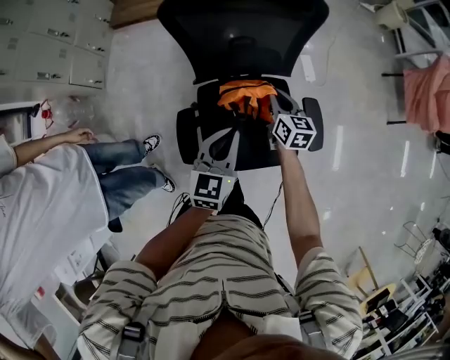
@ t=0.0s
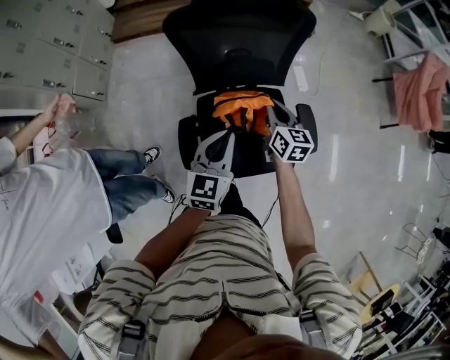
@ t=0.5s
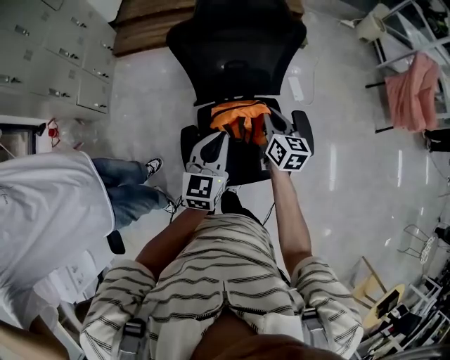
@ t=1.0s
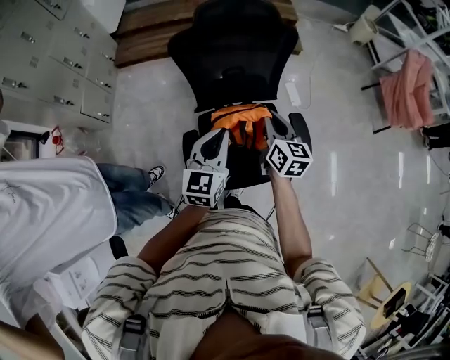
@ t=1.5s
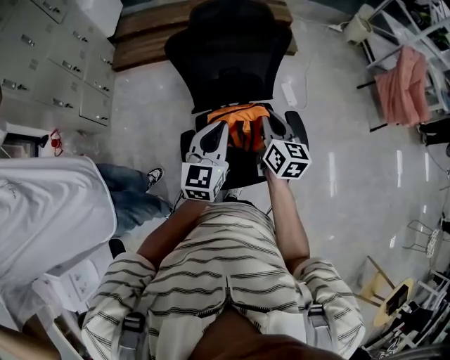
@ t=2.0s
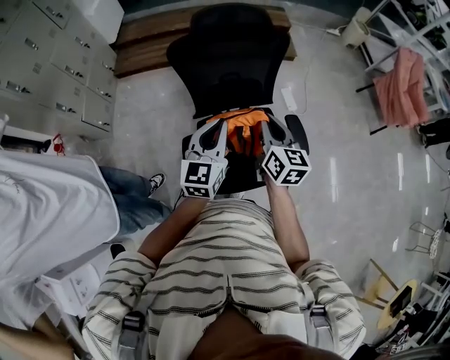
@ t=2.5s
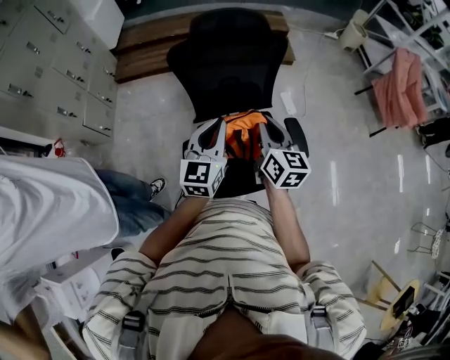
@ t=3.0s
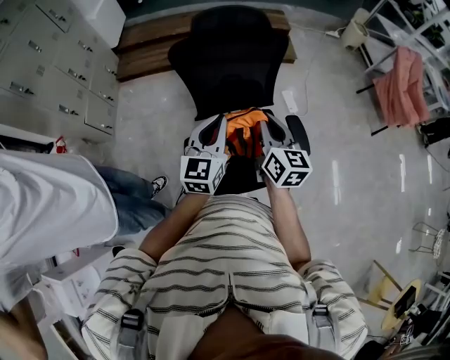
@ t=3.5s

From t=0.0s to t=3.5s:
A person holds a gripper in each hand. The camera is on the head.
From t=0.0s to t=2.0s: The right gripper travels upward and backward by approximately 20 cm; the left gripper shifts approximately 10 cm upward.
From t=2.0s to t=3.5s: The right gripper changes place by roughly 5 cm.

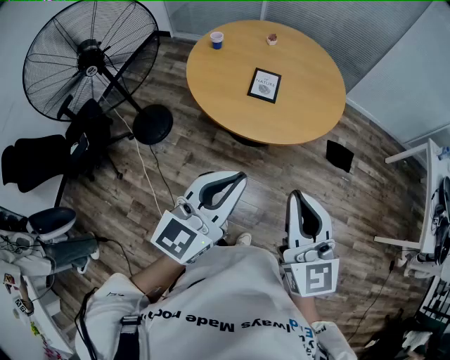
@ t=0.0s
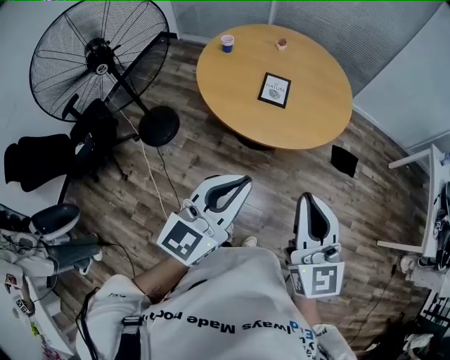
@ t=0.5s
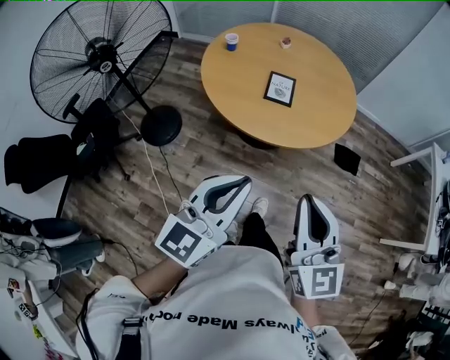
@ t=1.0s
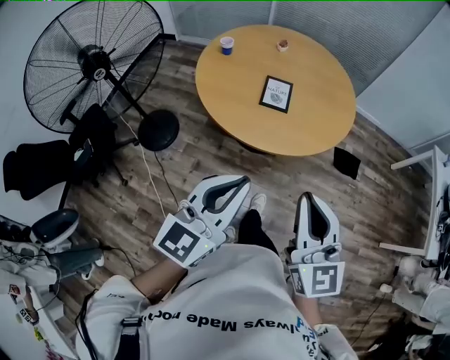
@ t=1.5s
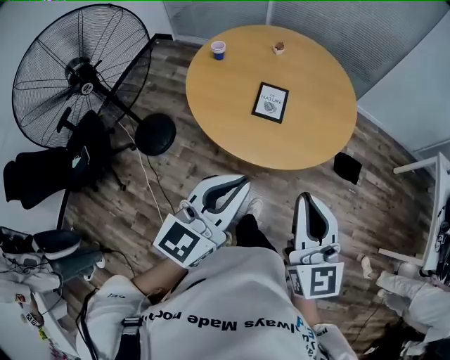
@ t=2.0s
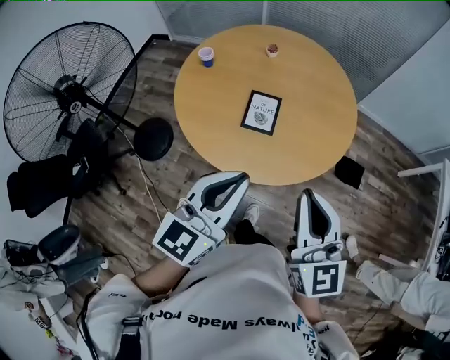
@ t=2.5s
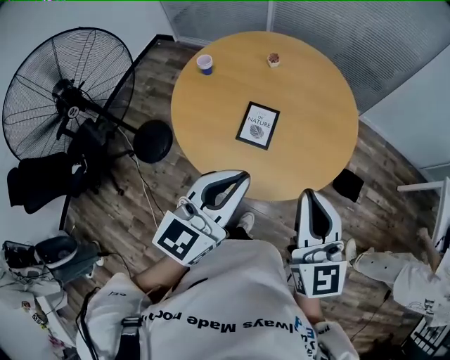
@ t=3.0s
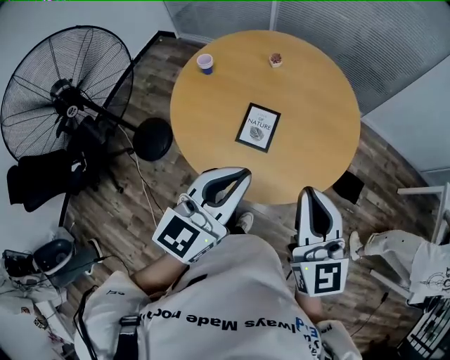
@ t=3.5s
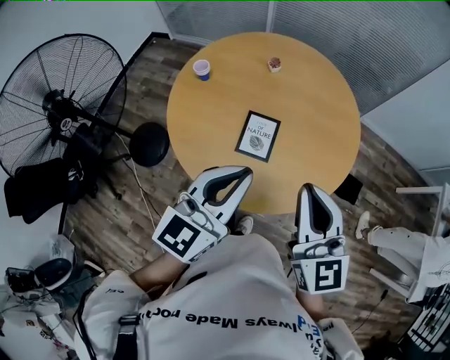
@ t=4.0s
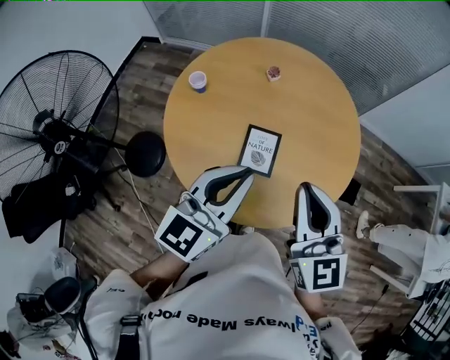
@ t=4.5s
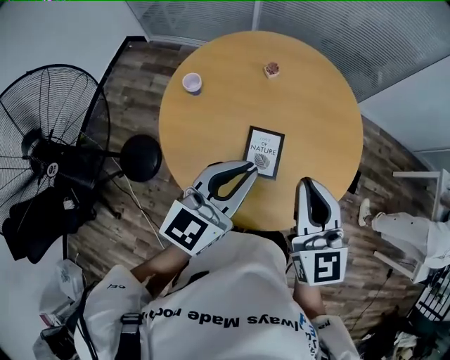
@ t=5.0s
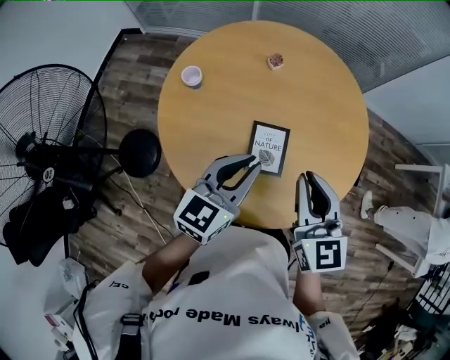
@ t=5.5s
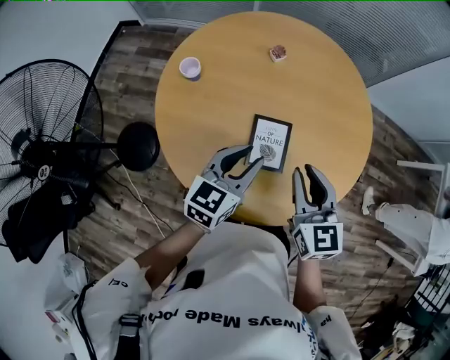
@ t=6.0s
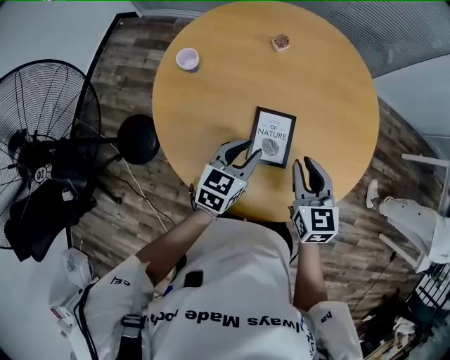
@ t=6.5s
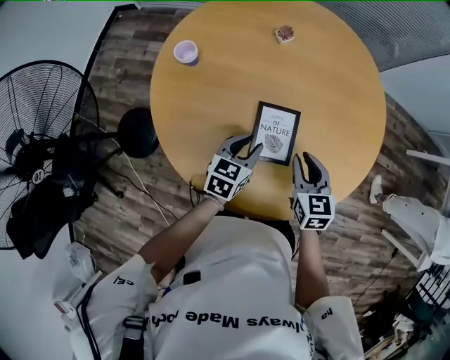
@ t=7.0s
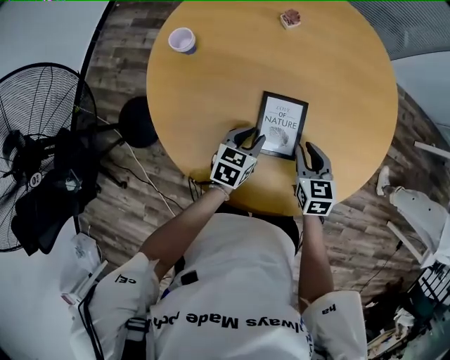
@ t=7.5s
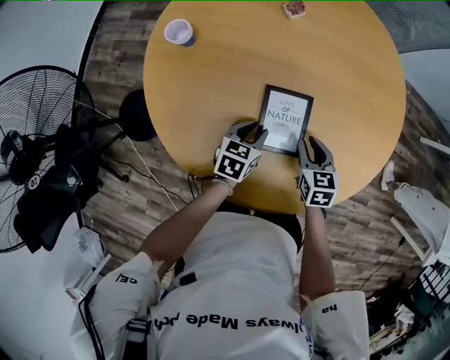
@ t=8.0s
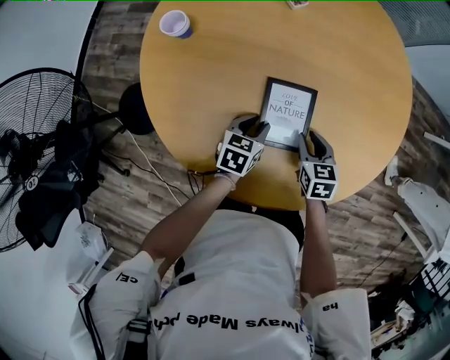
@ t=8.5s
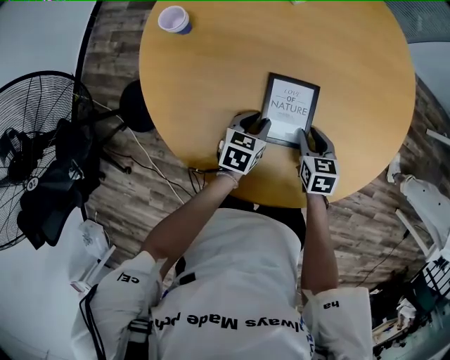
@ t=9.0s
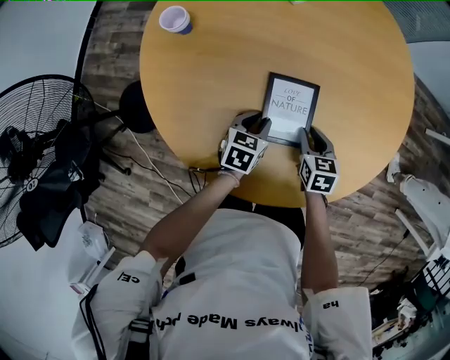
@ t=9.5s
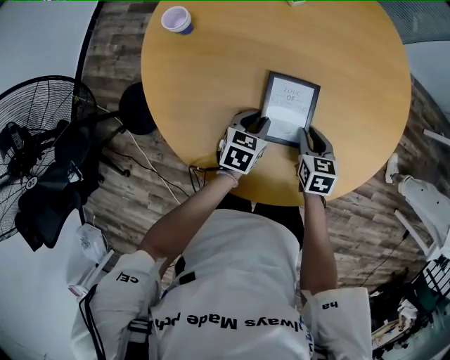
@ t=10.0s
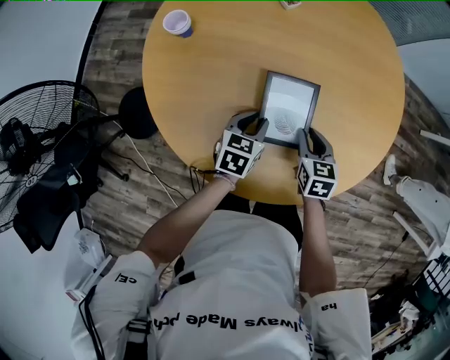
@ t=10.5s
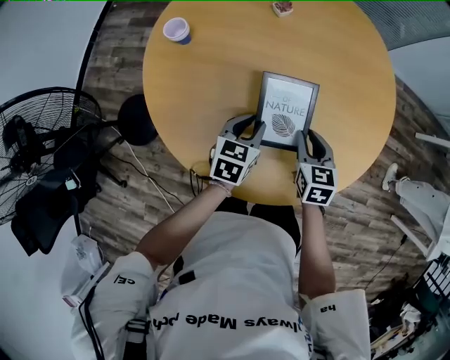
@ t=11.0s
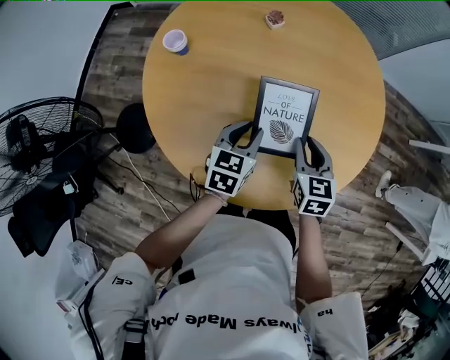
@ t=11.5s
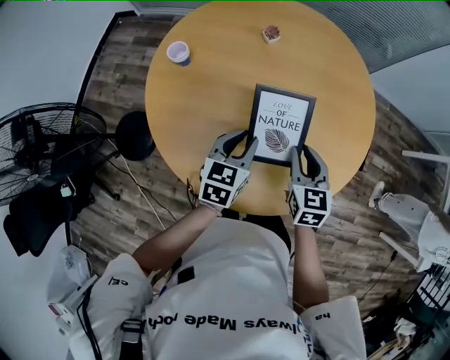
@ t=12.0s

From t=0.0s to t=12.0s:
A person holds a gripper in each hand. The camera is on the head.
From t=0.0s to t=2.0s: Both grippers travel together forward, about 15 cm.
From t=2.0s to t=4.0s: The two grippers go roughly 30 cm forward.
From t=4.0s to t=6.0s: The grippers both shift downward, forward and to the left by roughly 25 cm. The left gripper swivels some 20 degrees, and opens up.
From t=6.0s to t=8.0s: The two grippers go some 25 cm downward. The left gripper turns by approximately 30 degrees. The right gripper changes its angle by some 20 degrees.
From t=8.0s to t=10.0s: The grippers stay close to where they were, moving slightly.
From t=10.0s to t=12.0s: Both grippers move upward, some 20 cm.

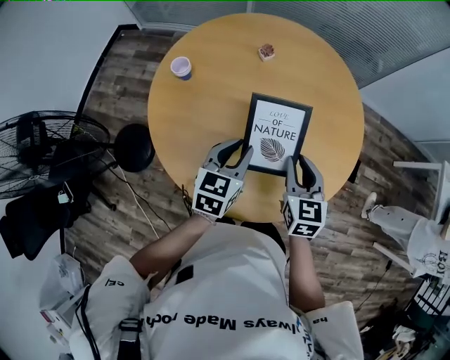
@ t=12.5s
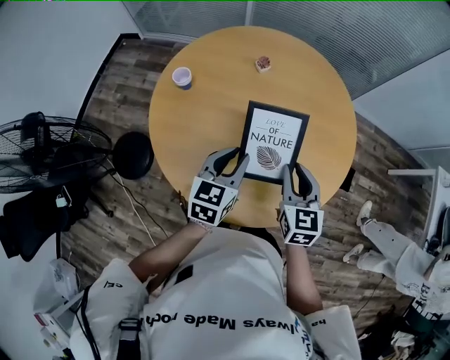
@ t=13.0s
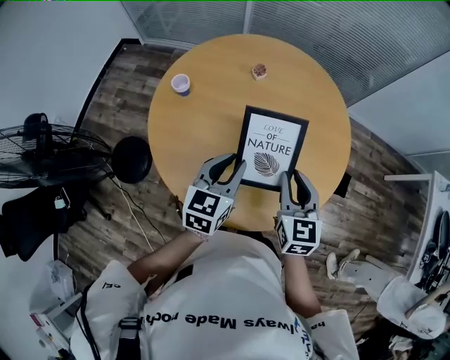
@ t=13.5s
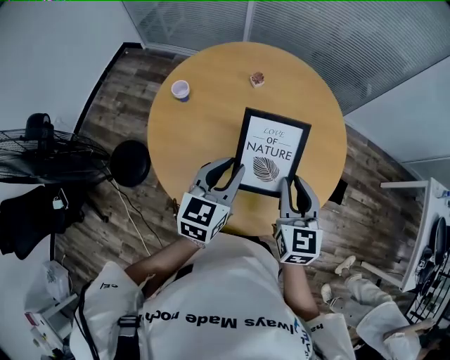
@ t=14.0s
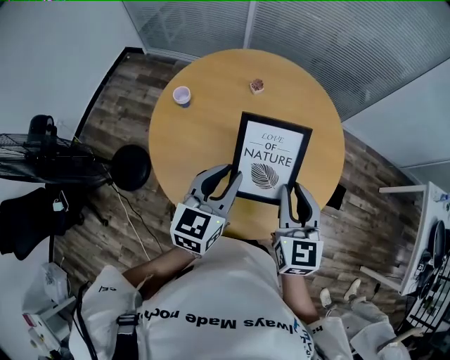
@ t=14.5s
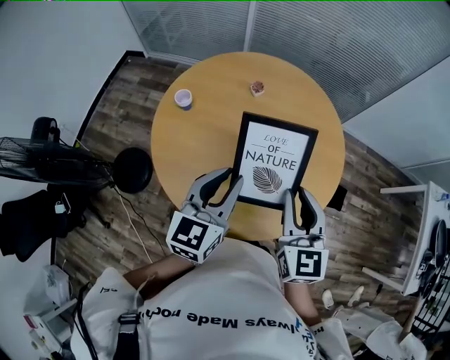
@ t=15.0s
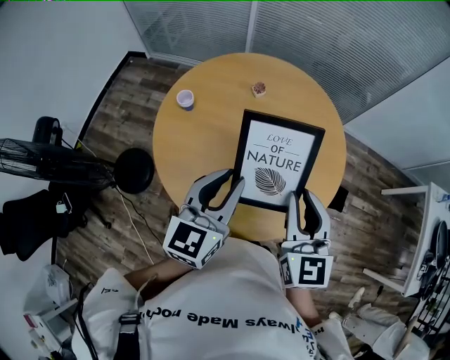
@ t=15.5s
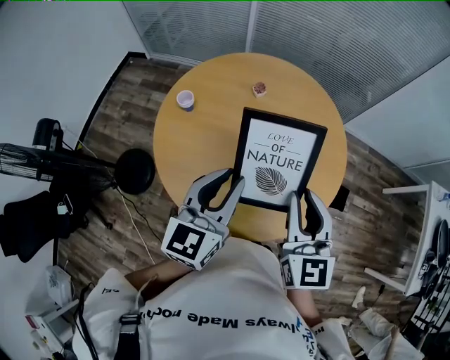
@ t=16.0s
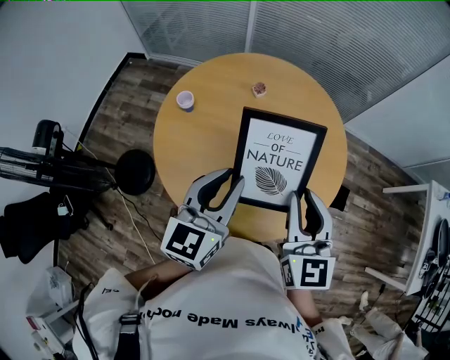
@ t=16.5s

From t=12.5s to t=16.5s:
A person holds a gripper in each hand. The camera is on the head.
From t=12.5s to t=14.5s: Both grippers travel together upward, roughly 15 cm.
From t=14.5s to t=16.5s: The grippers both shift upward by roughly 5 cm.

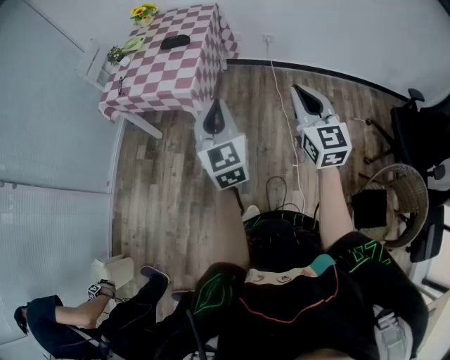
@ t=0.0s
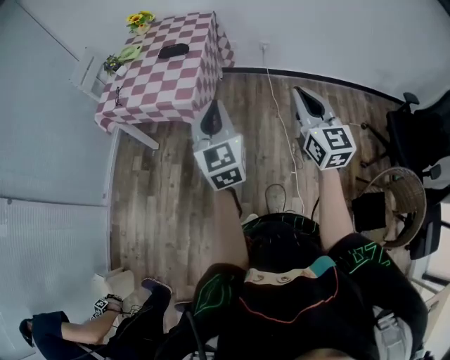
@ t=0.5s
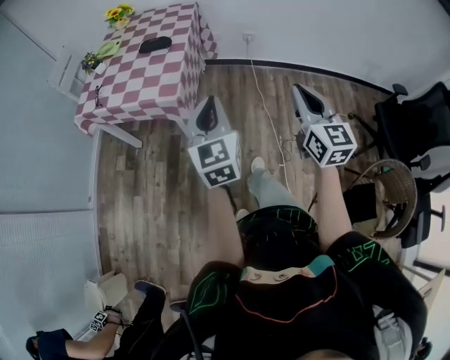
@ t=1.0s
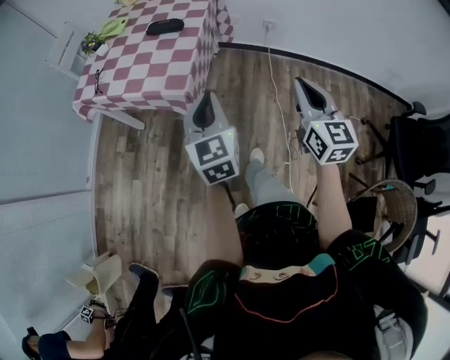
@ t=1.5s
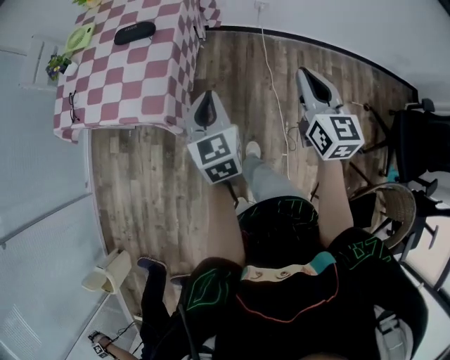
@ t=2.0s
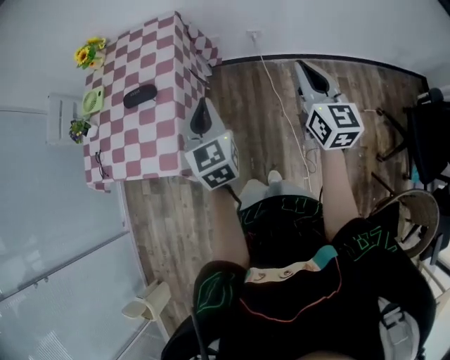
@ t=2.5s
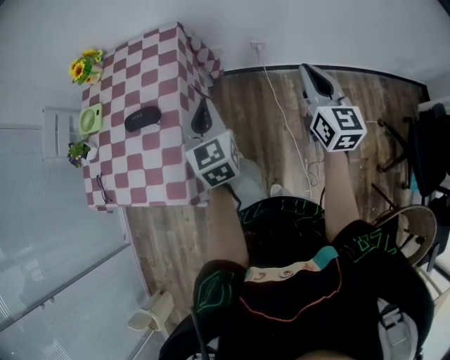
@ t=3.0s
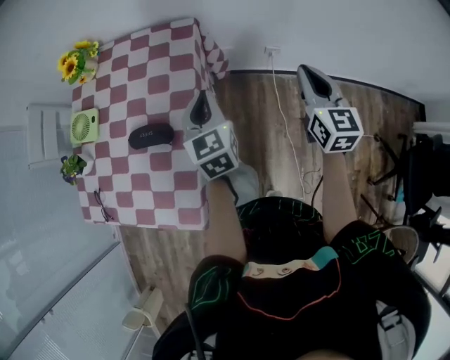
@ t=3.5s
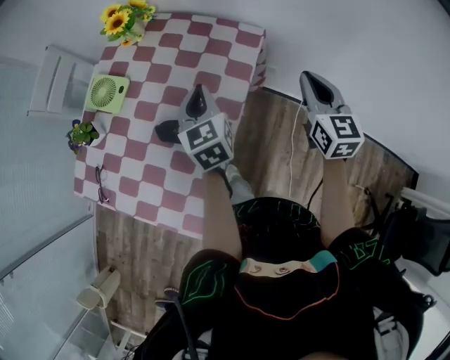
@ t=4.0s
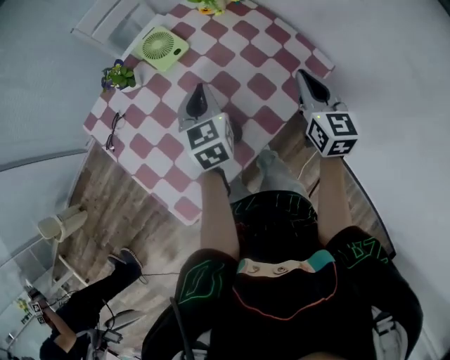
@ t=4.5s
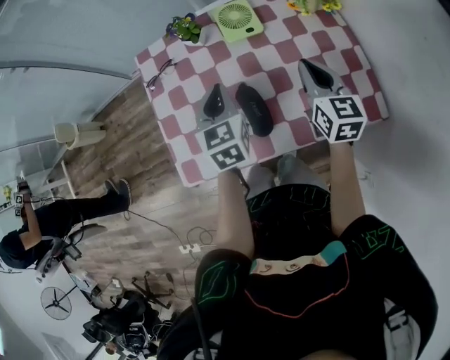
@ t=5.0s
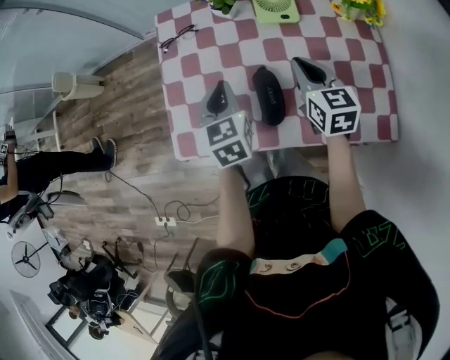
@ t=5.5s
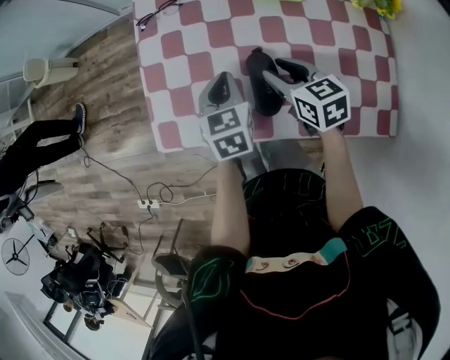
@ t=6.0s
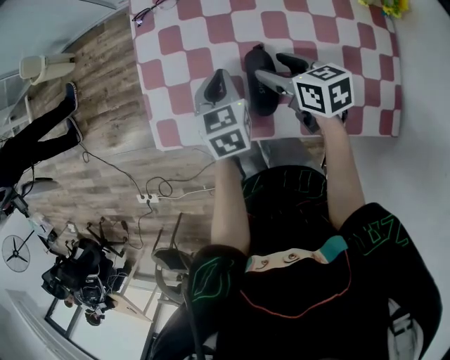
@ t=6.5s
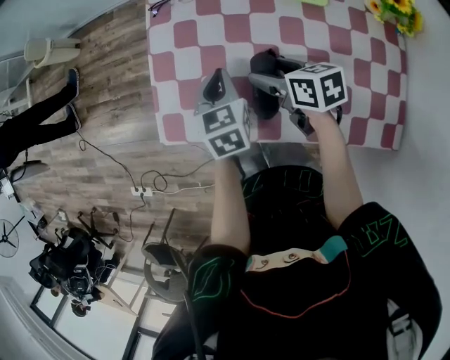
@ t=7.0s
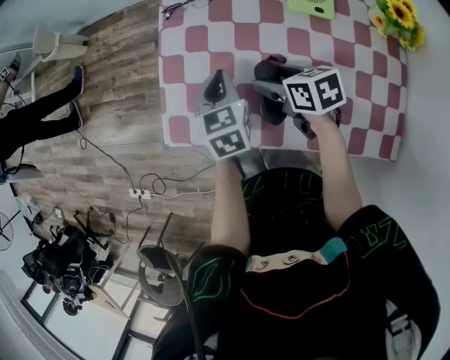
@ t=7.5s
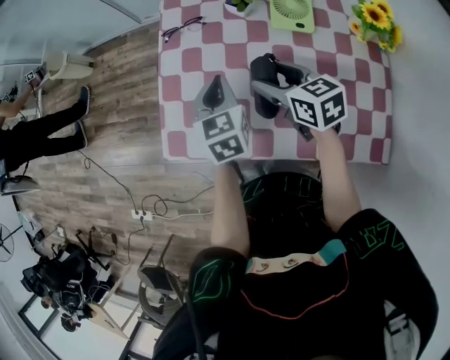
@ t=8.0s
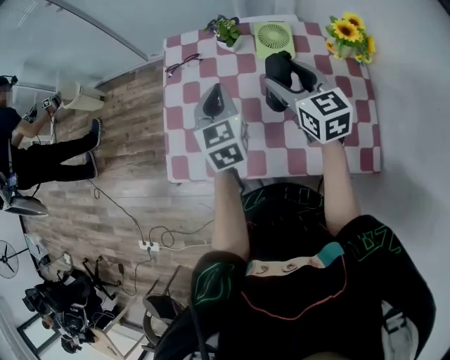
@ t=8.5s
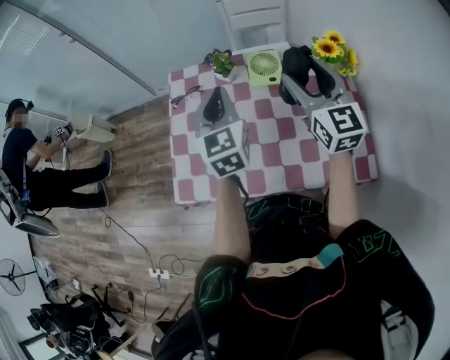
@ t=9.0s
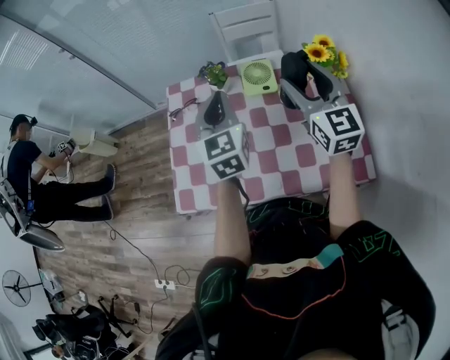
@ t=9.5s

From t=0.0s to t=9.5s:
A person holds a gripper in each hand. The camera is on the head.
From t=0.0s to t=2.0s: The right gripper heads forward, covering roughly 25 cm. The left gripper heads forward and downward, covering approximately 30 cm.
From t=2.0s to t=4.0s: The two grippers travel together, forward, some 50 cm.
From t=4.0s to t=5.5s: The left gripper ends up roughly 25 cm from where it was, and changes its angle by about 60 degrees, while the right gripper ends up roughly 40 cm from where it was, and rotates about 70 degrees.
From t=5.5s to t=7.5s: The right gripper ends up some 15 cm from where it was, changes its angle by roughly 40 degrees, and opens; the left gripper travels downward by approximately 5 cm.
From t=7.5s to t=9.5s: The two grippers go some 25 cm upward. The left gripper changes its angle by approximately 30 degrees, while the right gripper tilts its fingers roughly 50 degrees upward.
